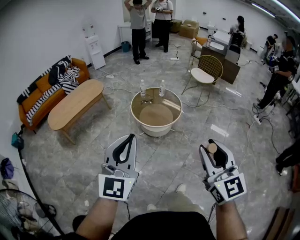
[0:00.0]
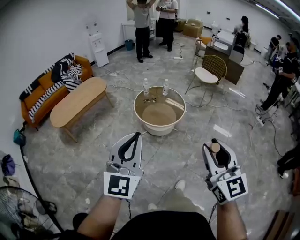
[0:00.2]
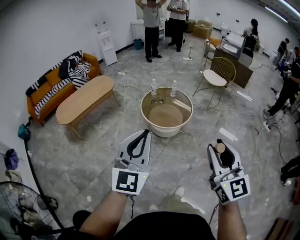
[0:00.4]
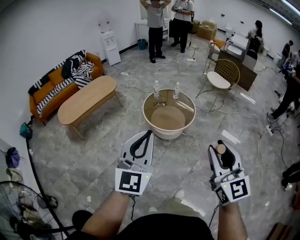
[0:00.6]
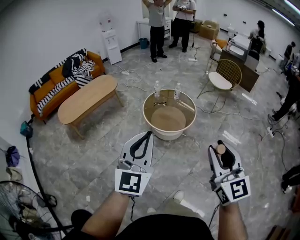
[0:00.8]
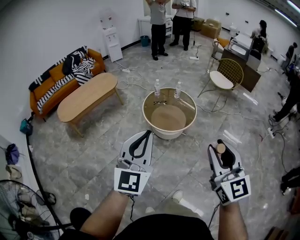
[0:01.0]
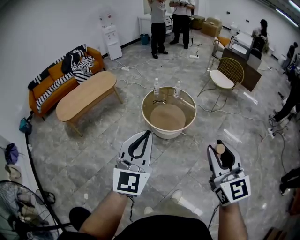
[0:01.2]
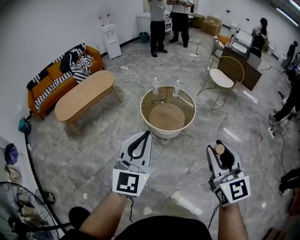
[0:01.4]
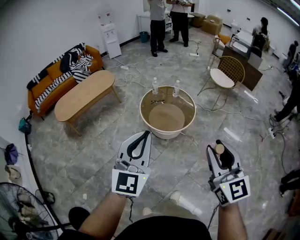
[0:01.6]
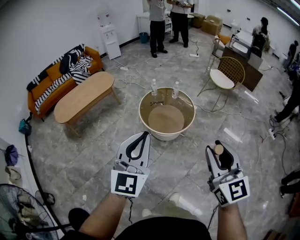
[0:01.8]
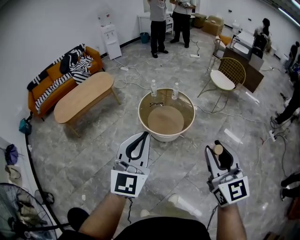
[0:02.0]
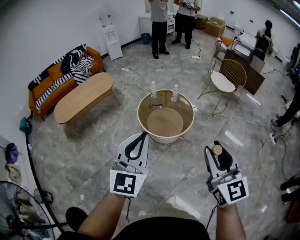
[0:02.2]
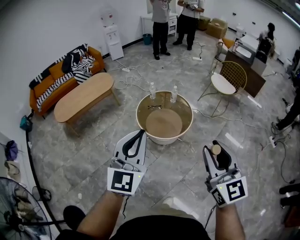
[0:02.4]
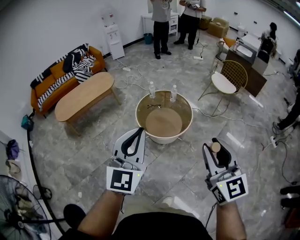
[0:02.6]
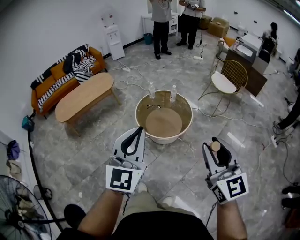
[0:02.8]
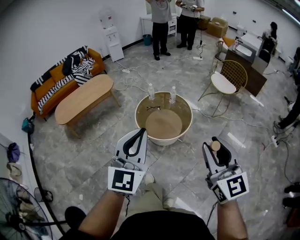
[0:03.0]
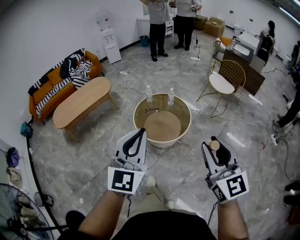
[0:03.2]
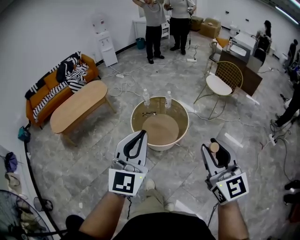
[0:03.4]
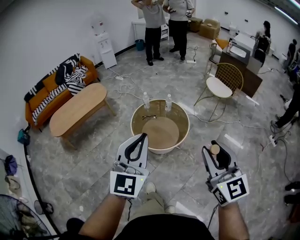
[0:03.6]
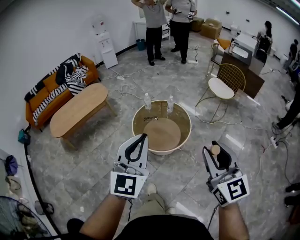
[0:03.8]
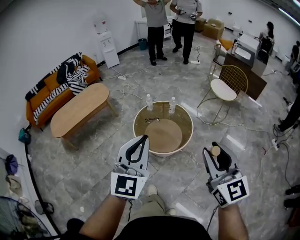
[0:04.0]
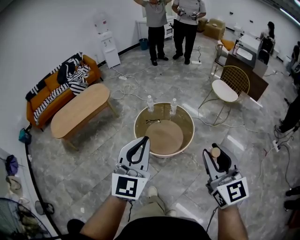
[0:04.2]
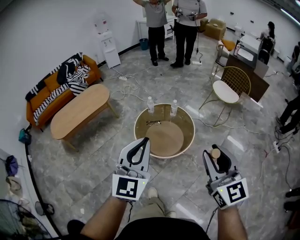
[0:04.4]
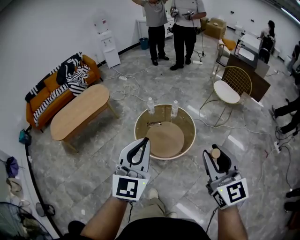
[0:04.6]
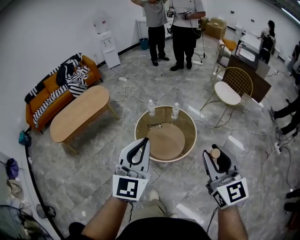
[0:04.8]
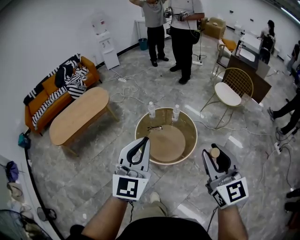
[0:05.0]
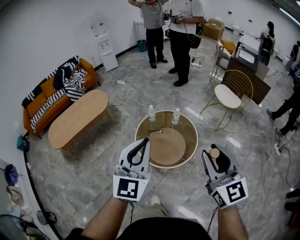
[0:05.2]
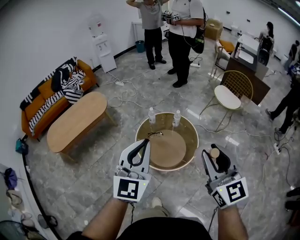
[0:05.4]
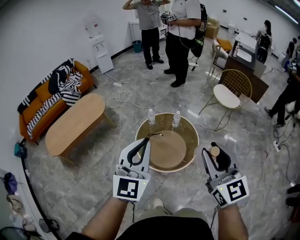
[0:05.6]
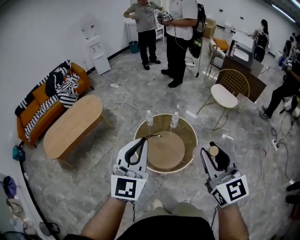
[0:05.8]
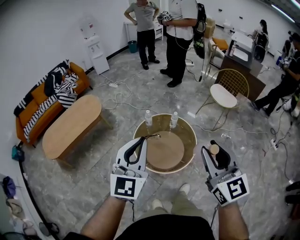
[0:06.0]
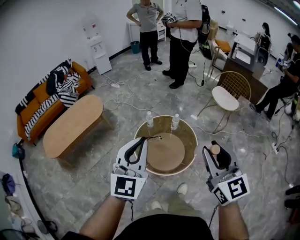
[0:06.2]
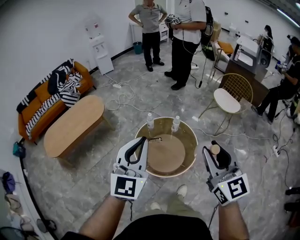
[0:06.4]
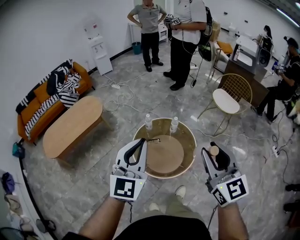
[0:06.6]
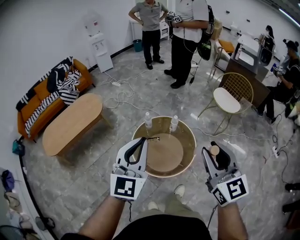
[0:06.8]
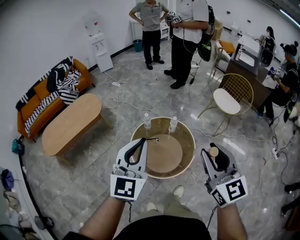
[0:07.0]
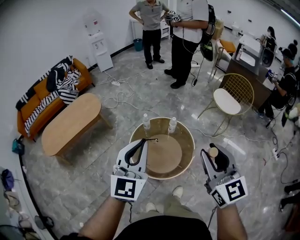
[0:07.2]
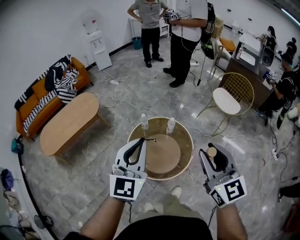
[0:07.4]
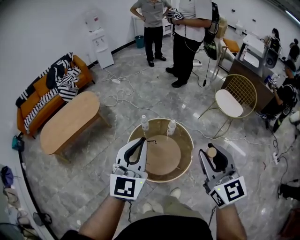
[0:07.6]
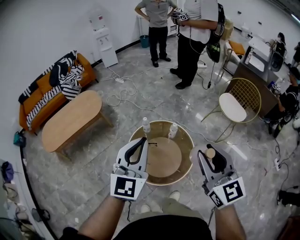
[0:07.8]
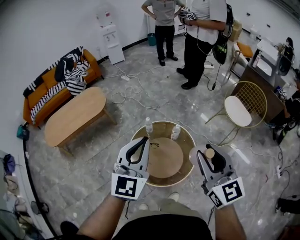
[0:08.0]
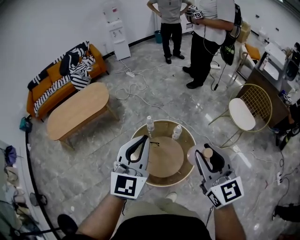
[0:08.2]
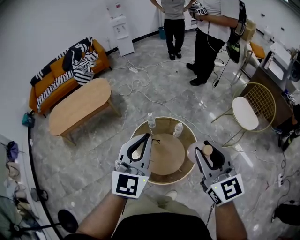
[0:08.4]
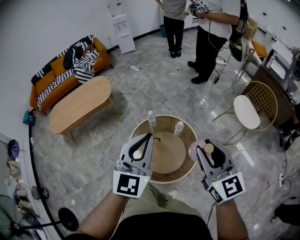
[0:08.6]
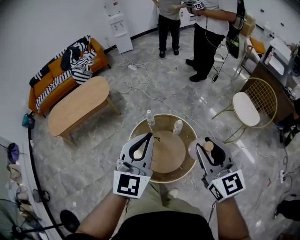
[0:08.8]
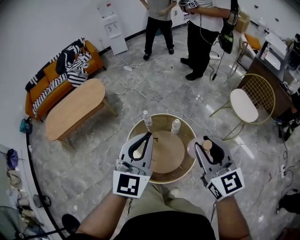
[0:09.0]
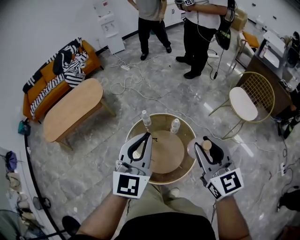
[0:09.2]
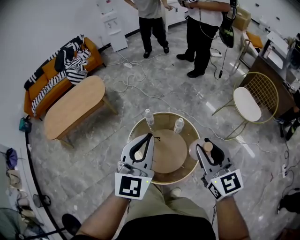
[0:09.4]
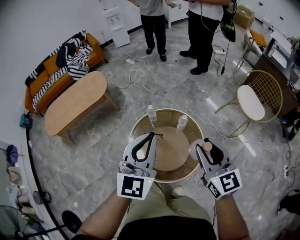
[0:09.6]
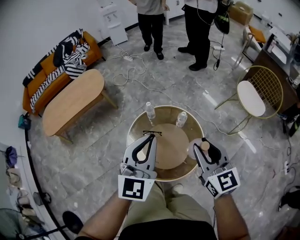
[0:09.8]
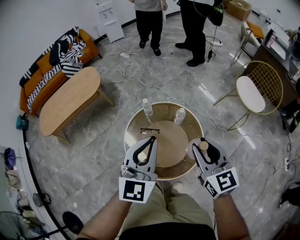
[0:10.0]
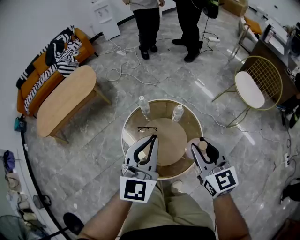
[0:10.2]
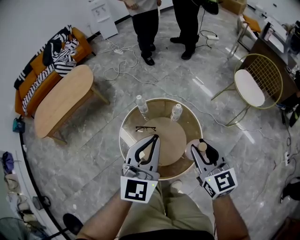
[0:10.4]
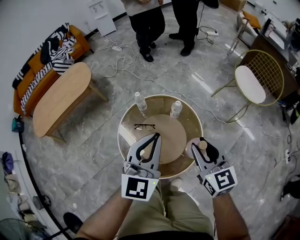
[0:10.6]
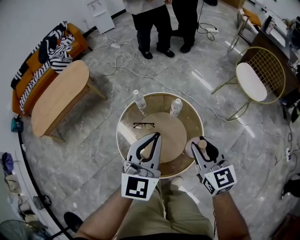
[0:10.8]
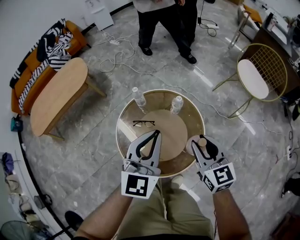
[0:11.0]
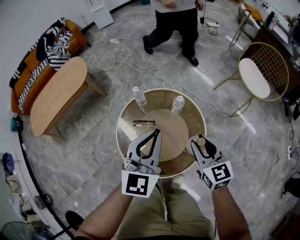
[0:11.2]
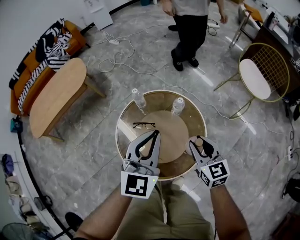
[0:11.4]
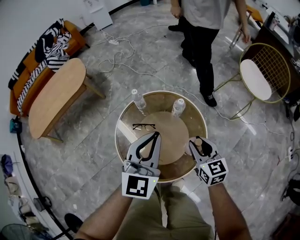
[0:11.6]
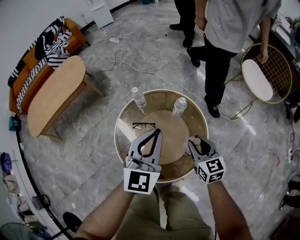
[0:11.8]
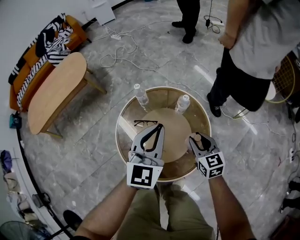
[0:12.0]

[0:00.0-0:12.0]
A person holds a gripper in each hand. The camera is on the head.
0:00.0 to 0:01.6: The right gripper travels forward by some 15 cm. The left gripper moves forward and to the right, about 15 cm.
0:01.6 to 0:03.0: Both grippers travel together to the right and forward, some 15 cm.
0:03.0 to 0:04.4: Both grippers travel together forward, some 15 cm.
0:04.4 to 0:06.0: The two grippers go some 20 cm forward and to the left.
0:06.0 to 0:07.6: The grippers both shift forward and to the right by some 15 cm.
0:07.6 to 0:09.0: The left gripper shifts roughly 10 cm to the right, forward and downward, while the right gripper travels forward, downward and to the right by about 15 cm.
0:09.0 to 0:10.4: The two grippers go approximately 15 cm downward.
0:10.4 to 0:12.0: The right gripper shifts approximately 25 cm downward. The left gripper shifts about 15 cm downward and forward.

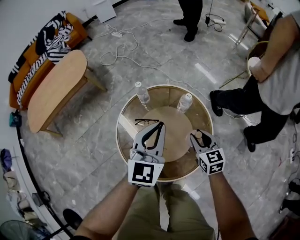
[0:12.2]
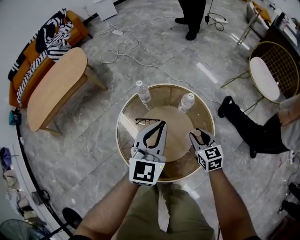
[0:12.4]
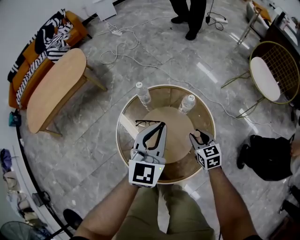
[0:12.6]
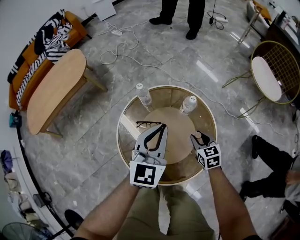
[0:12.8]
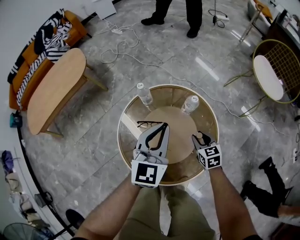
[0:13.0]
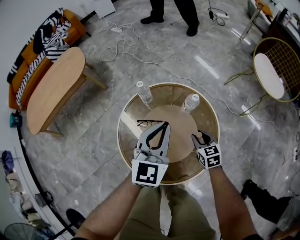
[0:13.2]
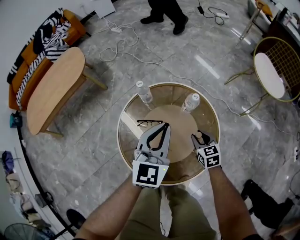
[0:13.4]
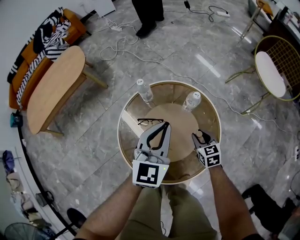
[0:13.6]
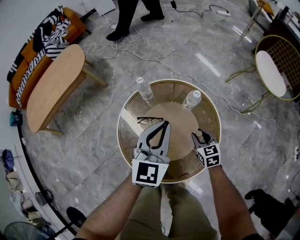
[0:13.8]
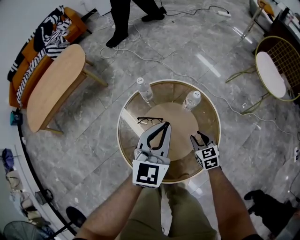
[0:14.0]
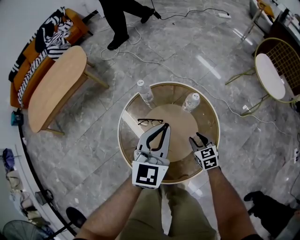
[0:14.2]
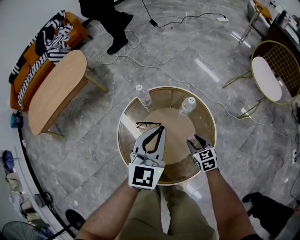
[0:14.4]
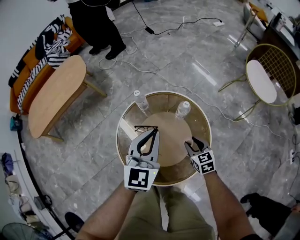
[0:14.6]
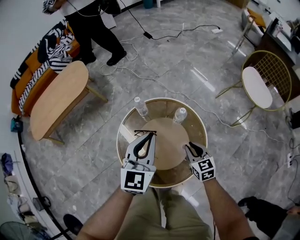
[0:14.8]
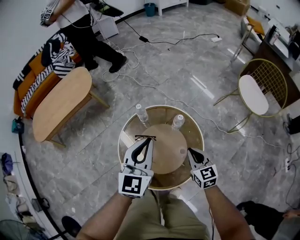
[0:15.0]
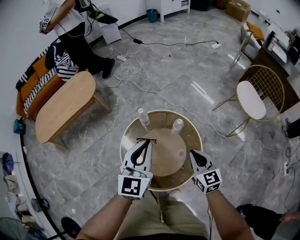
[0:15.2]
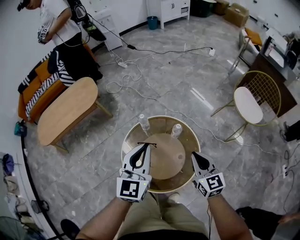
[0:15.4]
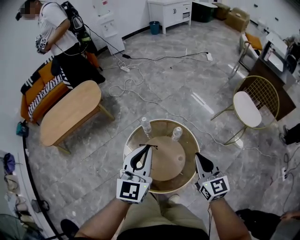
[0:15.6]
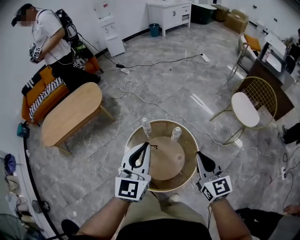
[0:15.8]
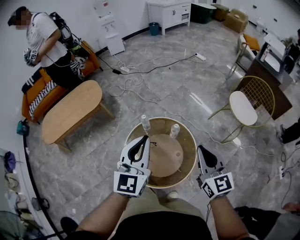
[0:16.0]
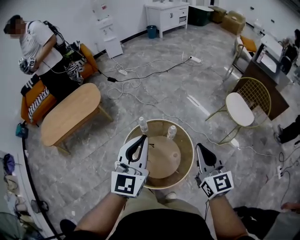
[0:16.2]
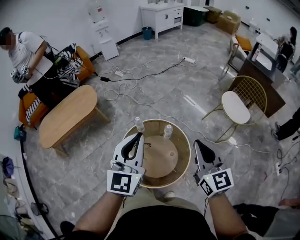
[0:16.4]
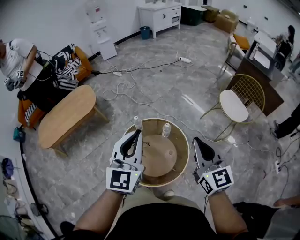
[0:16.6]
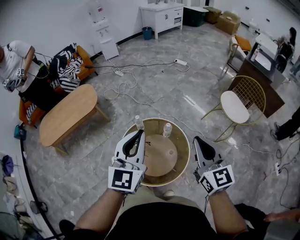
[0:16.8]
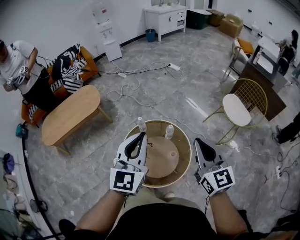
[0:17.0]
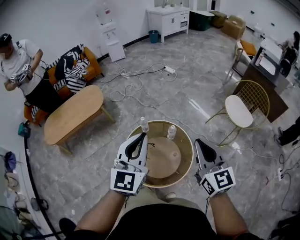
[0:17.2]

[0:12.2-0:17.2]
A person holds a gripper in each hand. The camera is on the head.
0:12.2 to 0:13.8: The right gripper goes about 15 cm downward. Meanwhile the left gripper travels downward by some 5 cm.
0:13.8 to 0:15.6: The right gripper shifts approximately 40 cm upward, rotates about 30 degrees, and closes its fingers. Meanwhile the left gripper shifts approximately 25 cm upward.
0:15.6 to 0:17.2: The right gripper travels upward by approximately 15 cm. Meanwhile the left gripper heads upward and backward, covering about 15 cm.

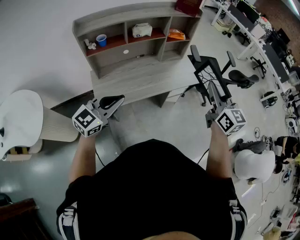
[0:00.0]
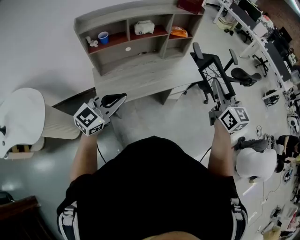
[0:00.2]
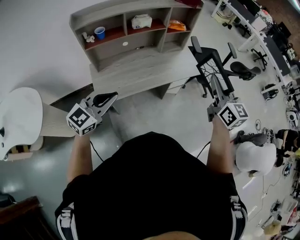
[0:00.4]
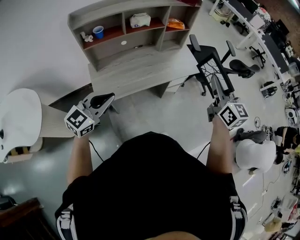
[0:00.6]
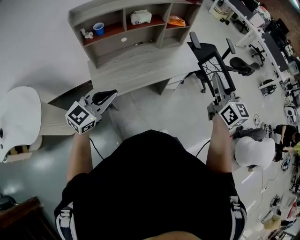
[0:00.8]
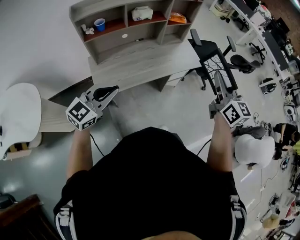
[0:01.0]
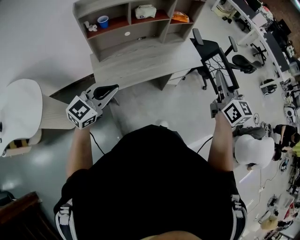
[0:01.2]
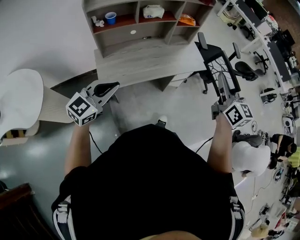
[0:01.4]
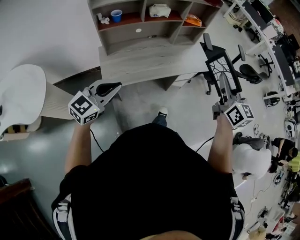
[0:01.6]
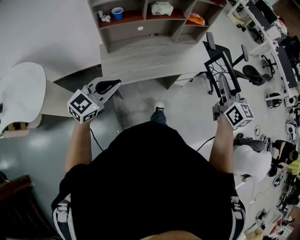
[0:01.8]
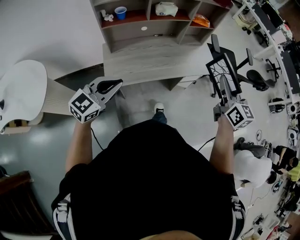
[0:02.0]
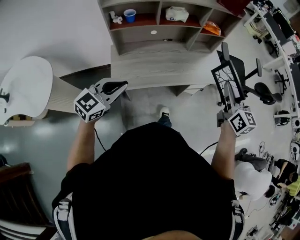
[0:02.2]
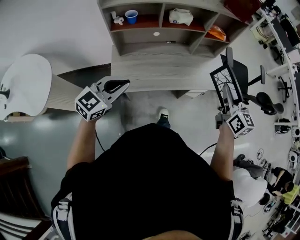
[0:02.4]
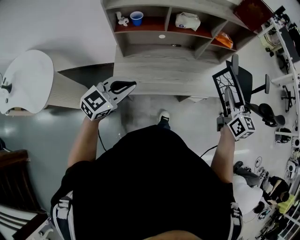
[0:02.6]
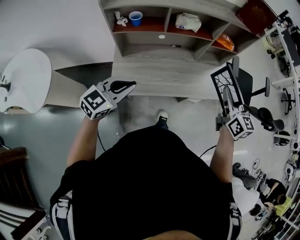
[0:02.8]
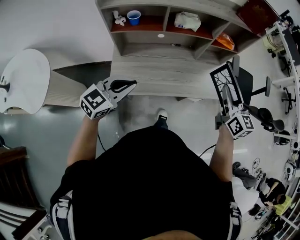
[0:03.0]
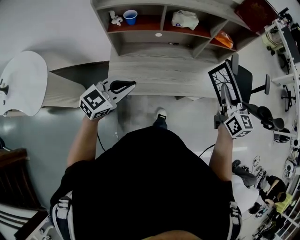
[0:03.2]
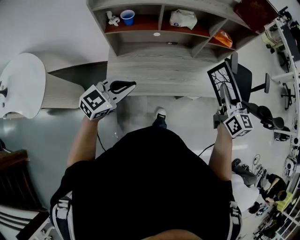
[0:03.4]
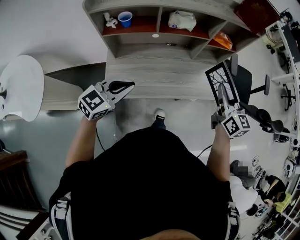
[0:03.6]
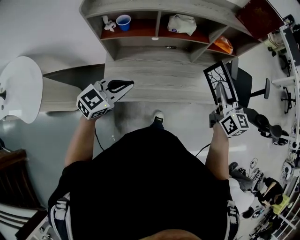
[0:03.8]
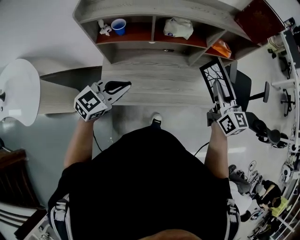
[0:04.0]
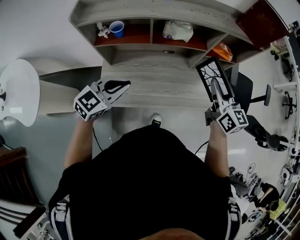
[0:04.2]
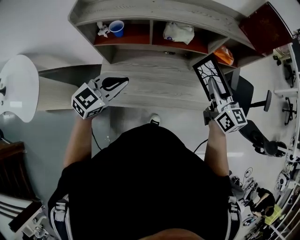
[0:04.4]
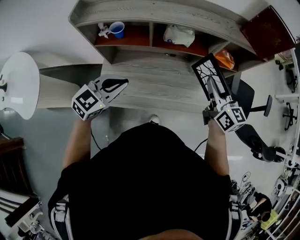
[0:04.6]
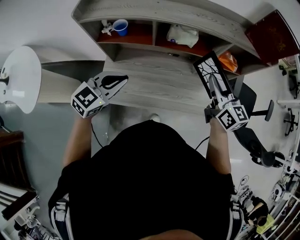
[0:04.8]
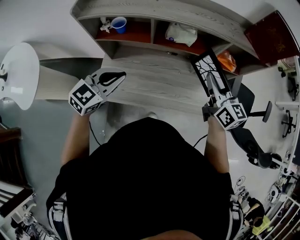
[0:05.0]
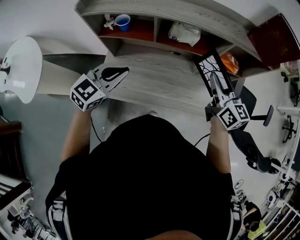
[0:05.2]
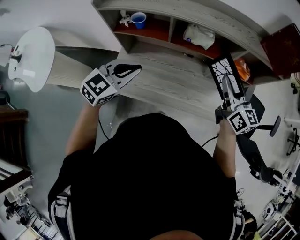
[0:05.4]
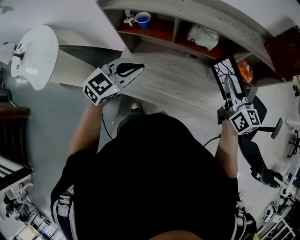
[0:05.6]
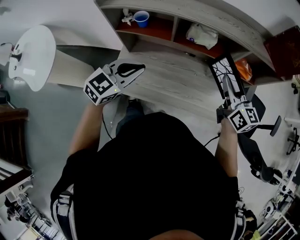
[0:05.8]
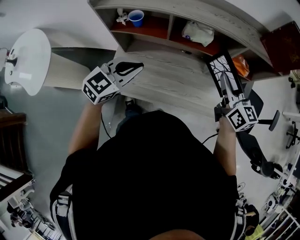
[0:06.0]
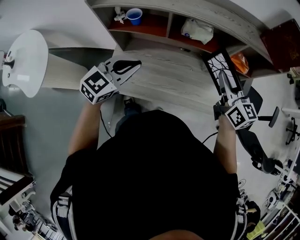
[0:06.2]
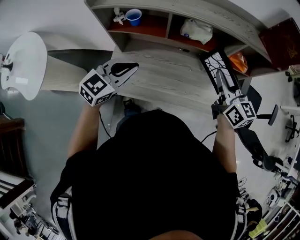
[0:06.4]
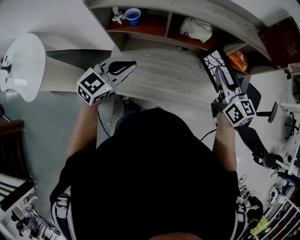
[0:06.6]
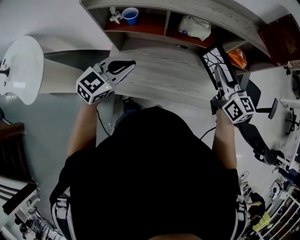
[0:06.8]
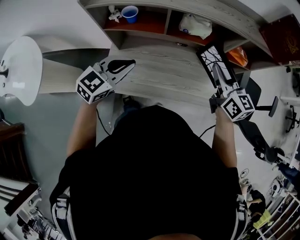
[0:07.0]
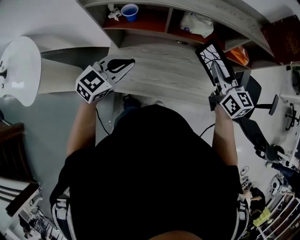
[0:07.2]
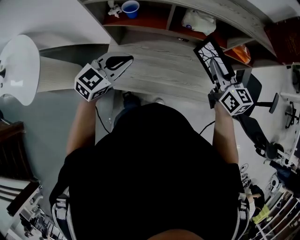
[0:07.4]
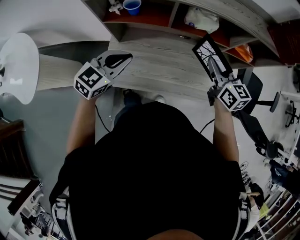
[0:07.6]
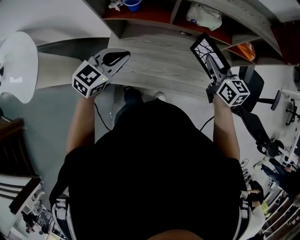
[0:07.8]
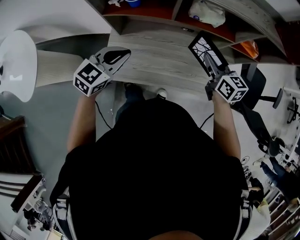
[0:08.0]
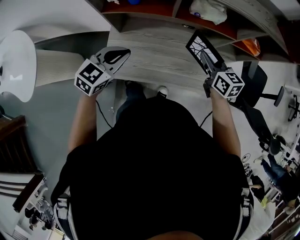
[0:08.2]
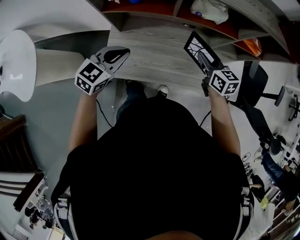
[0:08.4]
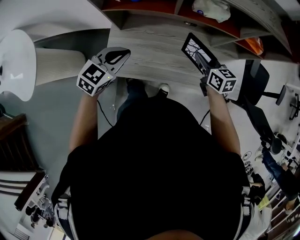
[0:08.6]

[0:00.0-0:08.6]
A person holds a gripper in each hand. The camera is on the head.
0:00.0 to 0:01.4: The left gripper heads to the left, covering about 5 cm.
0:01.4 to 0:02.8: The left gripper shifts approximately 15 cm forward, while the right gripper shifts roughly 25 cm forward and downward.
0:02.8 to 0:04.4: The grippers both shift forward by approximately 15 cm.
0:04.4 to 0:05.8: There are only small adjustments of the grippers.
0:05.8 to 0:07.2: The right gripper shifts by some 5 cm; the left gripper changes place by roughly 5 cm.
0:07.2 to 0:08.6: The right gripper shifts about 20 cm downward, and rotates about 20 degrees. The left gripper heads downward, covering approximately 10 cm.
